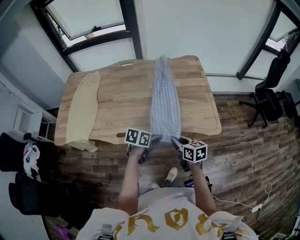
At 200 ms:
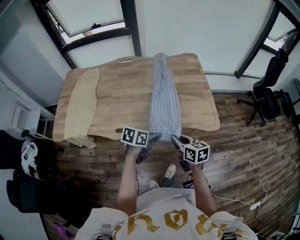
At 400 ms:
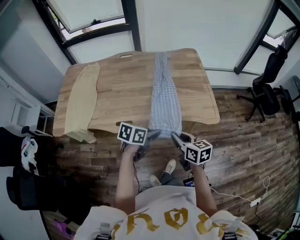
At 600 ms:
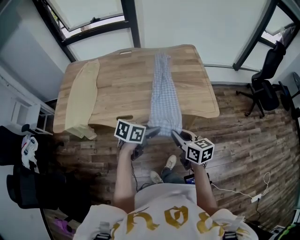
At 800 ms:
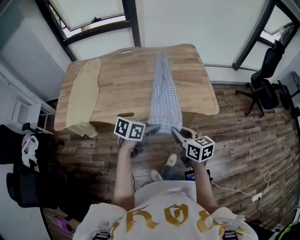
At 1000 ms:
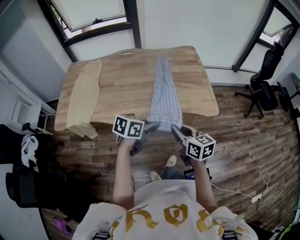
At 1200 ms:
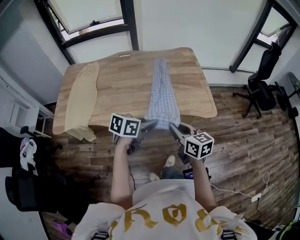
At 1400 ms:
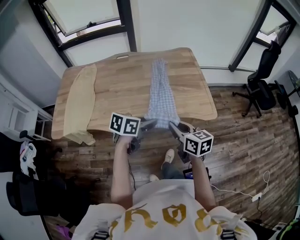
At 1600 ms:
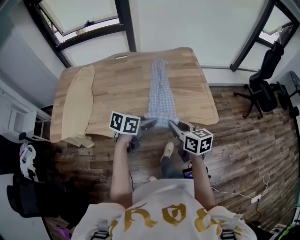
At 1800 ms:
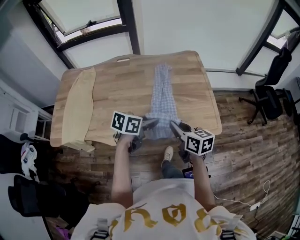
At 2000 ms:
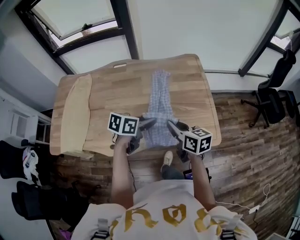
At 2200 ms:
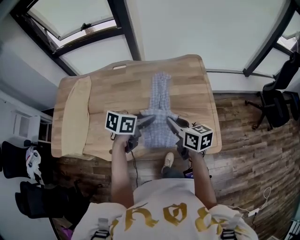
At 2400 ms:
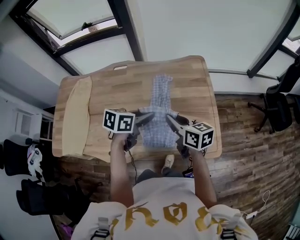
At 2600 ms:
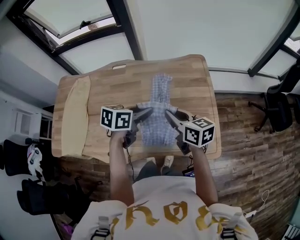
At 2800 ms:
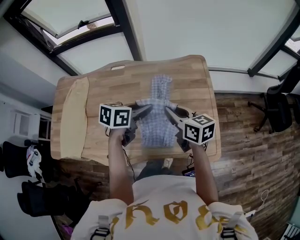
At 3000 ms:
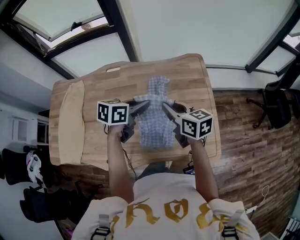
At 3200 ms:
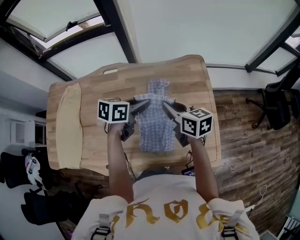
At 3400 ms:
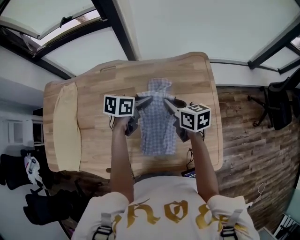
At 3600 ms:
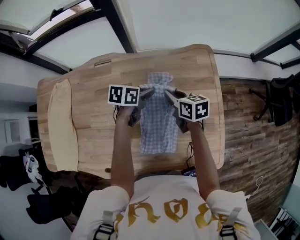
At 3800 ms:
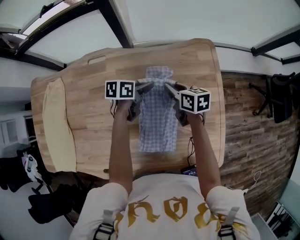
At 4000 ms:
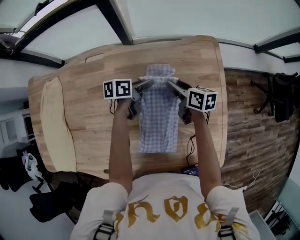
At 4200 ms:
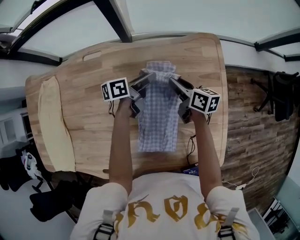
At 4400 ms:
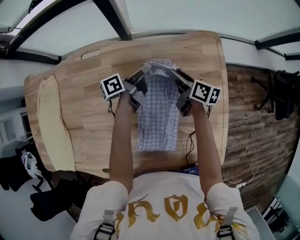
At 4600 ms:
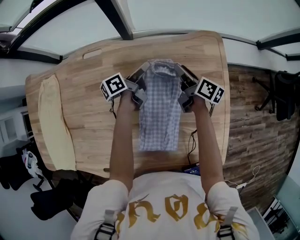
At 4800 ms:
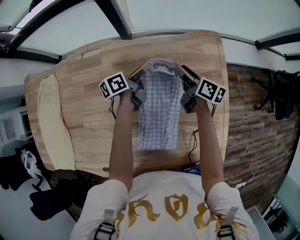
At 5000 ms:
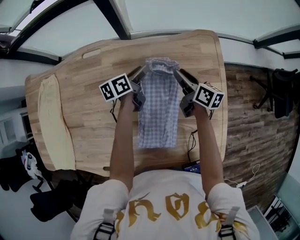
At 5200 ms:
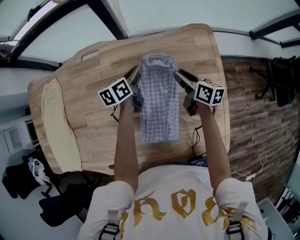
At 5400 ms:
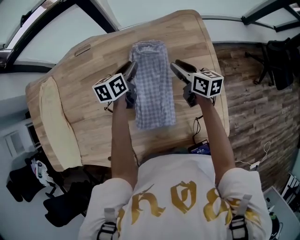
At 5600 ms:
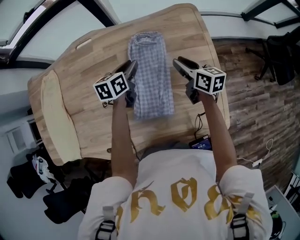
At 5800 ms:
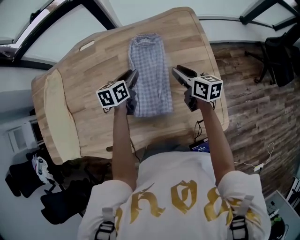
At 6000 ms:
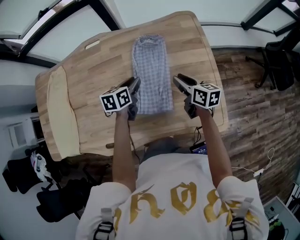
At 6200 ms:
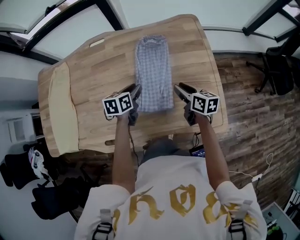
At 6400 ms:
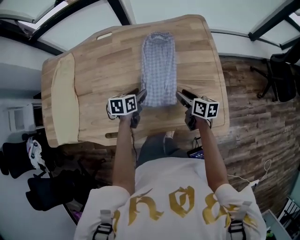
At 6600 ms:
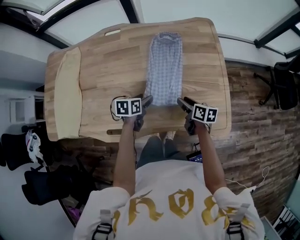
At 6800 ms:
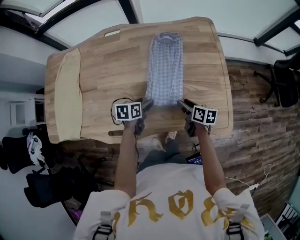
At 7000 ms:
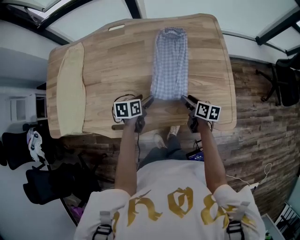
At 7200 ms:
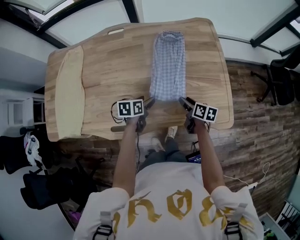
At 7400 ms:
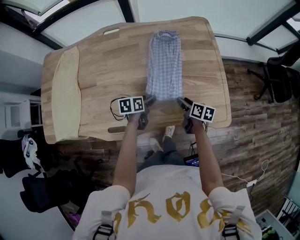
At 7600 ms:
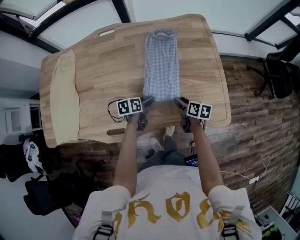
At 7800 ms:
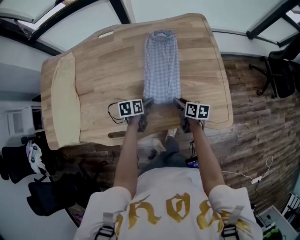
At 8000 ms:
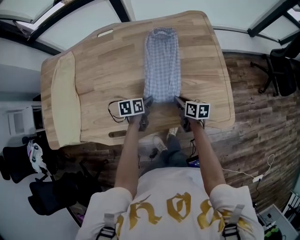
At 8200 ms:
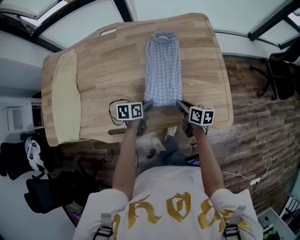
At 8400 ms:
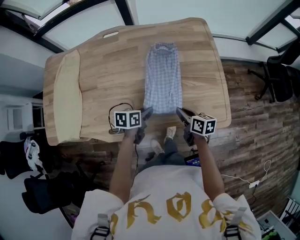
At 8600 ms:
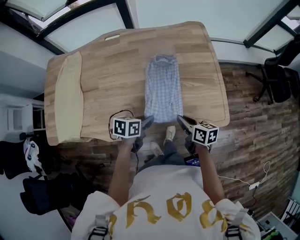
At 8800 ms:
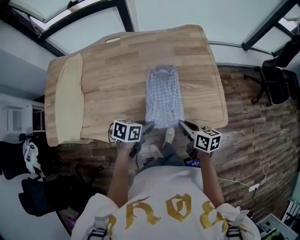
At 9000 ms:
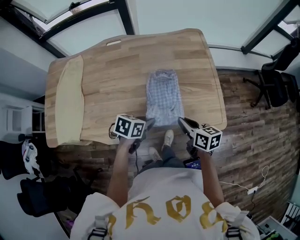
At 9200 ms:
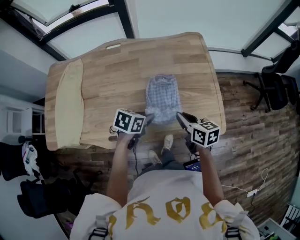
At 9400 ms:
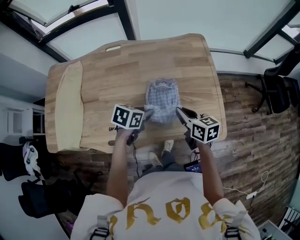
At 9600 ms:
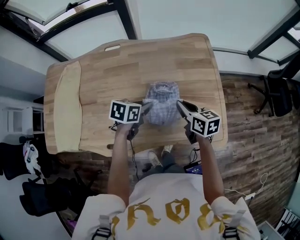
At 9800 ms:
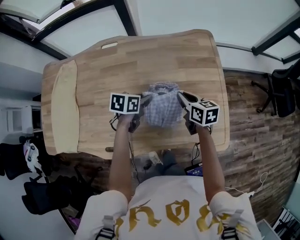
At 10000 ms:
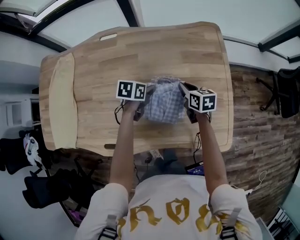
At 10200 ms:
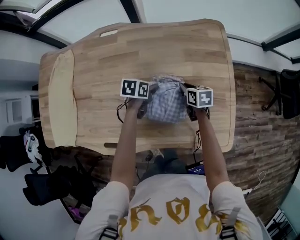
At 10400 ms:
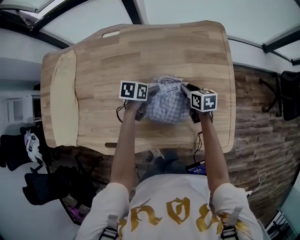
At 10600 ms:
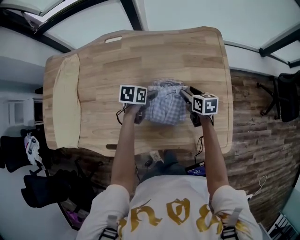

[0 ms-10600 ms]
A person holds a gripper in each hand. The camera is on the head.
0 ms to 1600 ms: Both grippers travel together upward, some 10 cm.
1600 ms to 3000 ms: Both grippers move forward, about 35 cm.
3000 ms to 4600 ms: The grippers both shift forward and downward by roughly 35 cm. The left gripper twists roughly 50 degrees counterclockwise, seen from behind, and opens its fingers, while the right gripper swivels about 40 degrees, and opens up.
4600 ms to 6000 ms: Both grippers move backward, about 25 cm. The right gripper turns by some 20 degrees; the left gripper rolls clockwise, seen from behind, by some 40 degrees, and closes up.
6000 ms to 7600 ms: Both grippers move backward and downward, about 20 cm. The left gripper opens its fingers.
7600 ms to 9000 ms: The two grippers go some 20 cm upward and backward. The left gripper rotates about 30 degrees, and closes its fingers; the right gripper swivels some 20 degrees, and closes.
9000 ms to 10600 ms: The grippers both shift forward and downward by approximately 30 cm. The left gripper opens; the right gripper opens.

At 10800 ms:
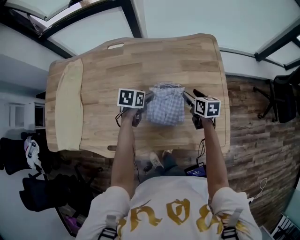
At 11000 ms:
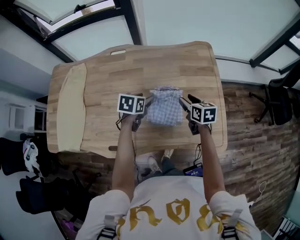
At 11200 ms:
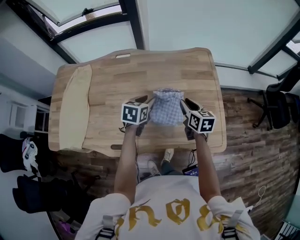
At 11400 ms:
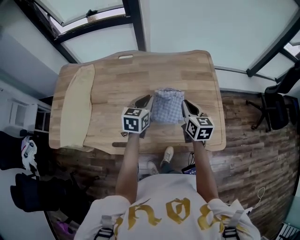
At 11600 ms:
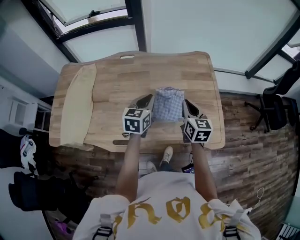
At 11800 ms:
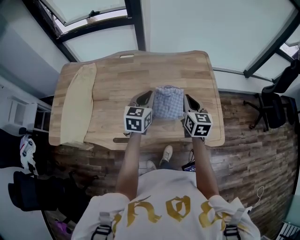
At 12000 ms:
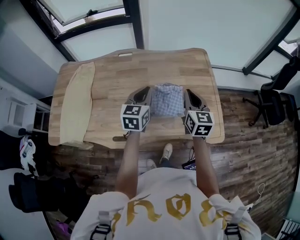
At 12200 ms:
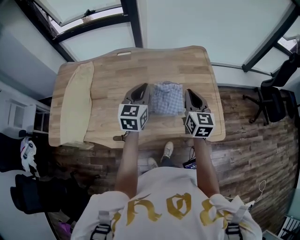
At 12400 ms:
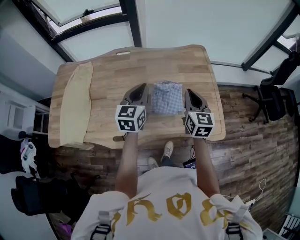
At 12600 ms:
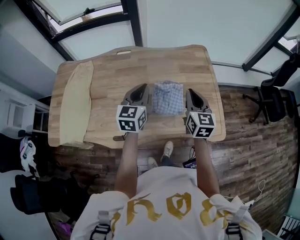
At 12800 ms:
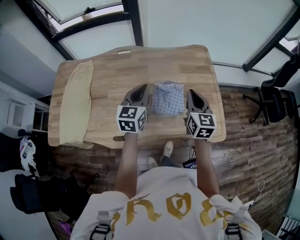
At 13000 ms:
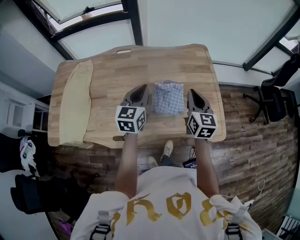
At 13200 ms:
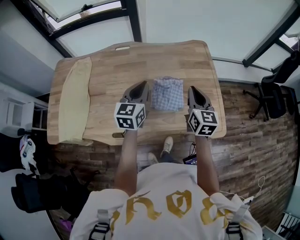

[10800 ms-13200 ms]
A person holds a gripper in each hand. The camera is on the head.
10800 ms to 12000 ms: Both grippers travel together upward and backward, roughly 25 cm. The right gripper changes its angle by approximately 40 degrees, and closes up. Meanwhile the left gripper angles its fingers upward, by roughly 40 degrees, and closes its fingers.
12000 ms to 13200 ms: The grippers make only small movements.

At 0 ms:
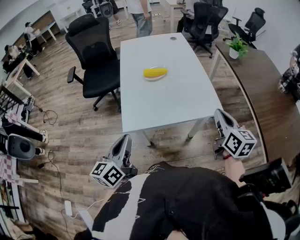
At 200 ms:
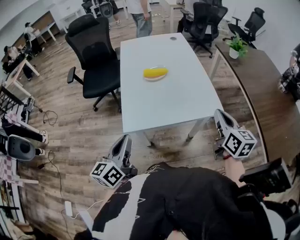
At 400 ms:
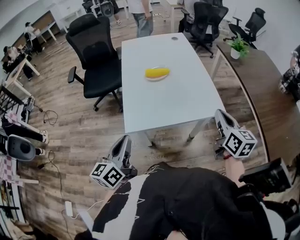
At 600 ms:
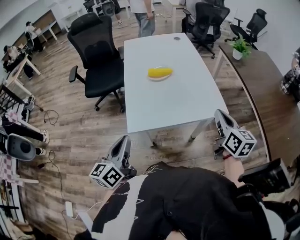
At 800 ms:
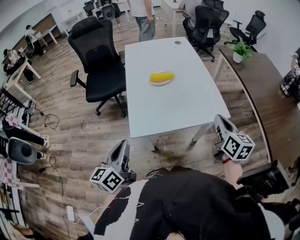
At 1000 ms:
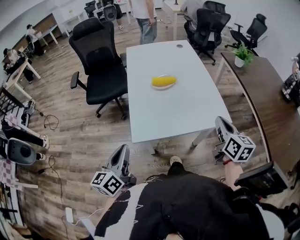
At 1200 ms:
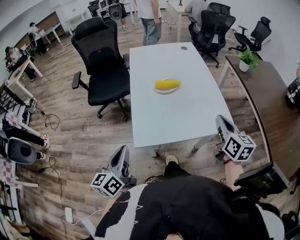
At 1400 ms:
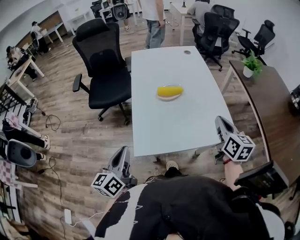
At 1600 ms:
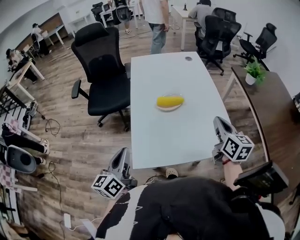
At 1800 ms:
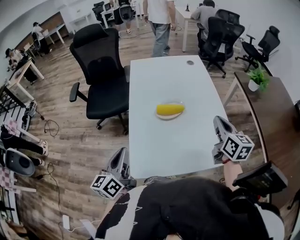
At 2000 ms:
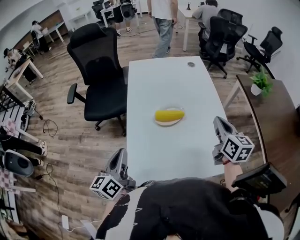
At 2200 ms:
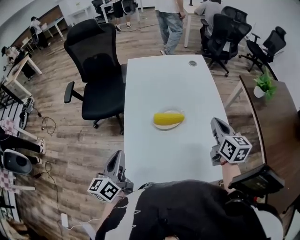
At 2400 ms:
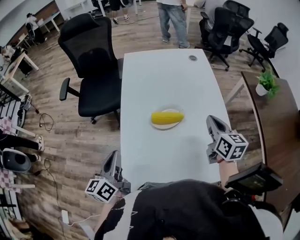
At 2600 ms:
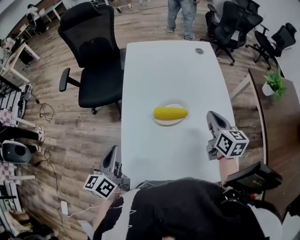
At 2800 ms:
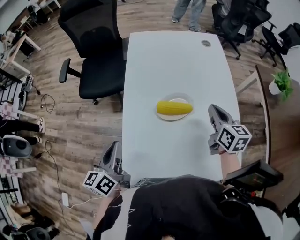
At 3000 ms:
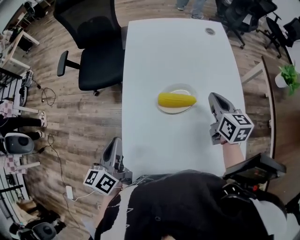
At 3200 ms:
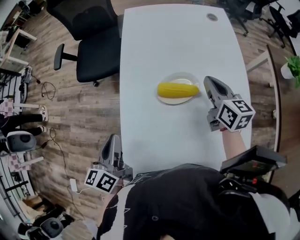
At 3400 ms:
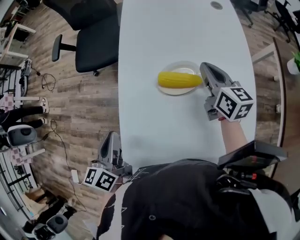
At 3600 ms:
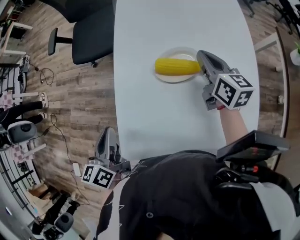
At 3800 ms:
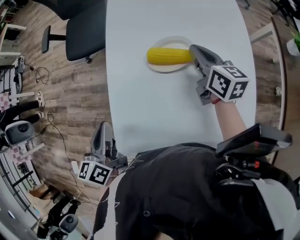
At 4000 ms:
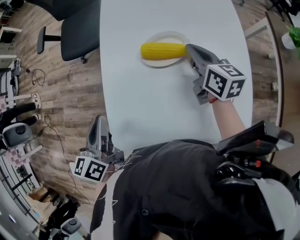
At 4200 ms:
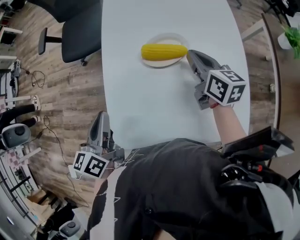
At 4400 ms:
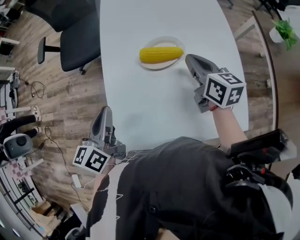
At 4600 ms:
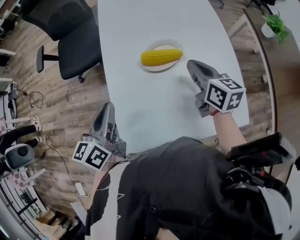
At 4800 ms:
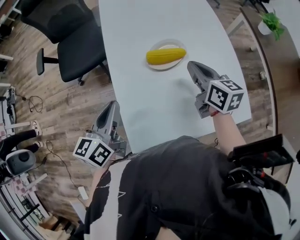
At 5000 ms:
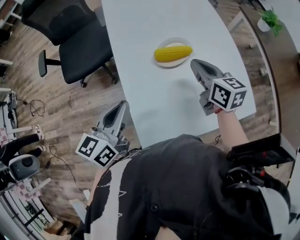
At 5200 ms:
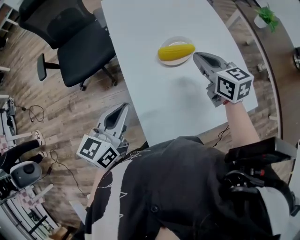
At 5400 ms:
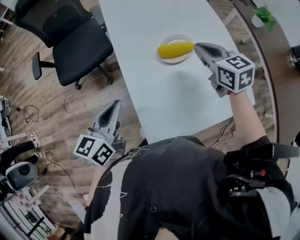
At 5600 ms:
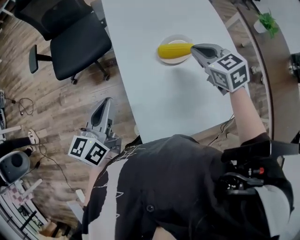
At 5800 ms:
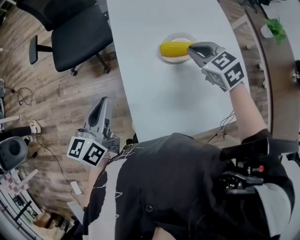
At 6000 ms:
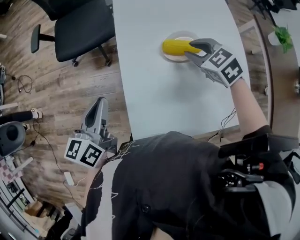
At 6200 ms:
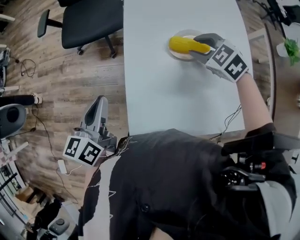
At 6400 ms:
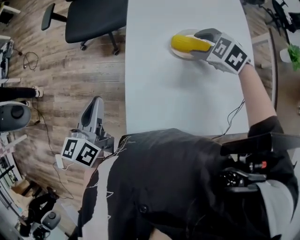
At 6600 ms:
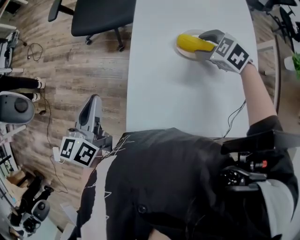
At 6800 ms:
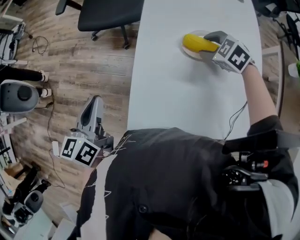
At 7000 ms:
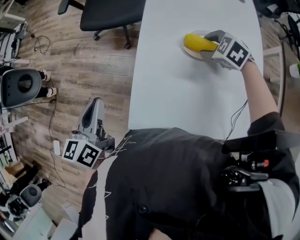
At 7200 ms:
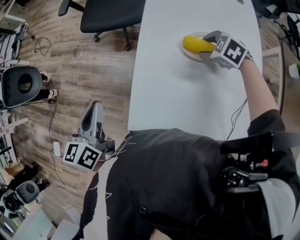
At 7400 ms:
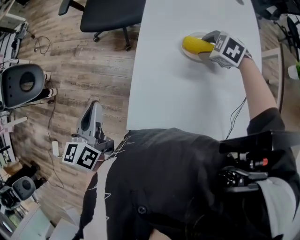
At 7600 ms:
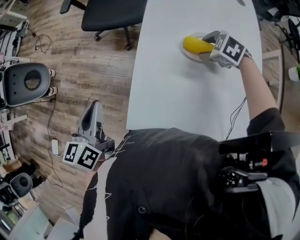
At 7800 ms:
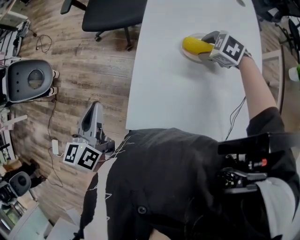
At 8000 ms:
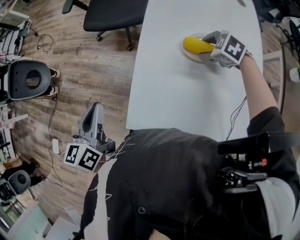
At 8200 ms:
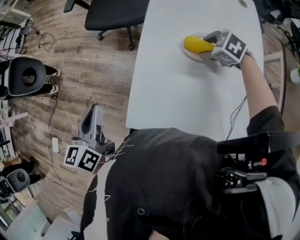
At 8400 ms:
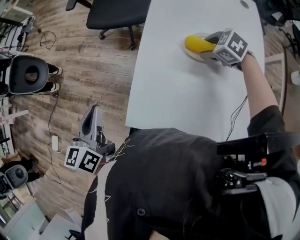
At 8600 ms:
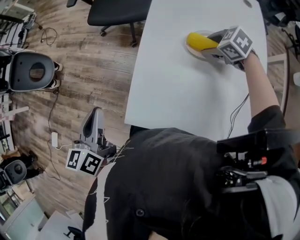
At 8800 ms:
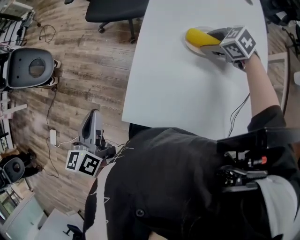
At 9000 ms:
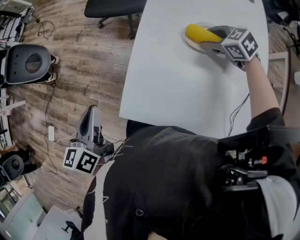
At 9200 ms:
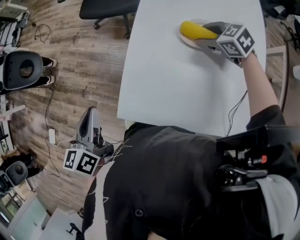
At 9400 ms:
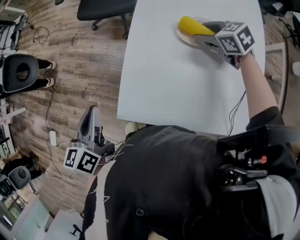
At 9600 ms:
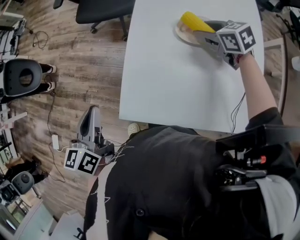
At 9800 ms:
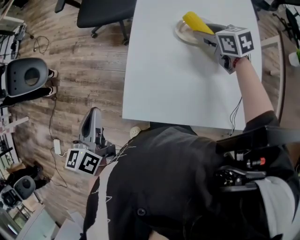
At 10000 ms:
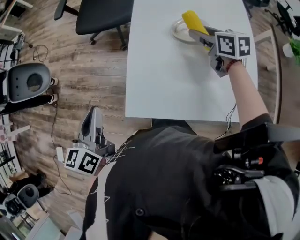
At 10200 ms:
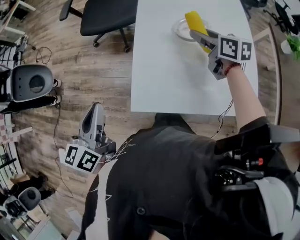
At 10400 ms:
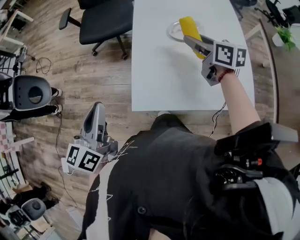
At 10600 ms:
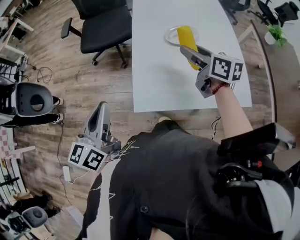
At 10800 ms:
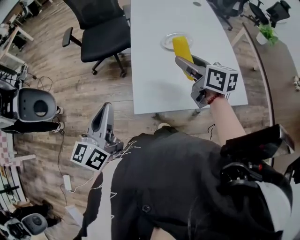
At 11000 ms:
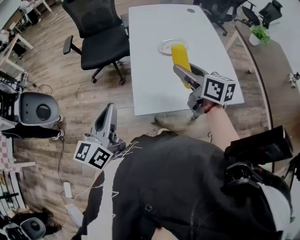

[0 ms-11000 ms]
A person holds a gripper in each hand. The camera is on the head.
0 ms to 1600 ms: Both grippers travel together forward and to the left, some 20 cm.
1600 ms to 3200 ms: The left gripper goes some 15 cm forward and downward. The right gripper is displaced forward and downward by roughly 30 cm.
3200 ms to 4800 ms: The right gripper heads backward and to the left, covering some 10 cm; the left gripper swivels about 30 degrees.
4800 ms to 6200 ms: The left gripper changes place by some 10 cm. Meanwhile the right gripper ends up about 10 cm from where it was, twists about 60 degrees counterclockwise, seen from behind, and opens.
6200 ms to 7800 ms: The right gripper travels downward by approximately 5 cm, and turns by roughly 20 degrees; the left gripper travels backward and to the left by approximately 10 cm.
7800 ms to 9400 ms: The right gripper changes its angle by some 30 degrees, while the left gripper travels backward by about 5 cm.
9400 ms to 11000 ms: The right gripper moves about 30 cm, and tilts its fingers approximately 40 degrees upward, while the left gripper travels upward by some 10 cm, and rotates some 30 degrees.
